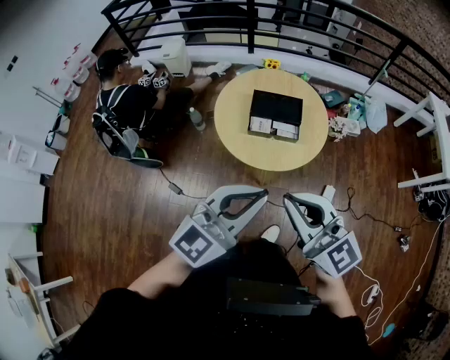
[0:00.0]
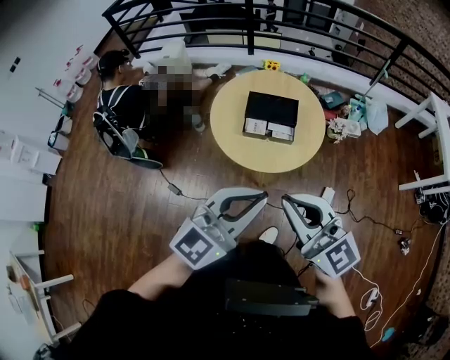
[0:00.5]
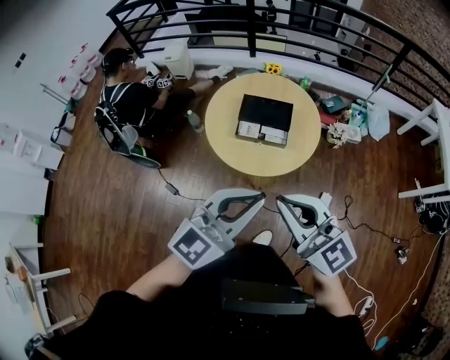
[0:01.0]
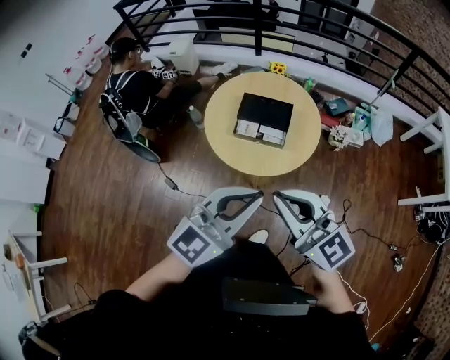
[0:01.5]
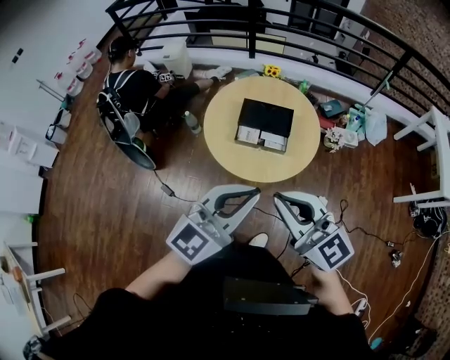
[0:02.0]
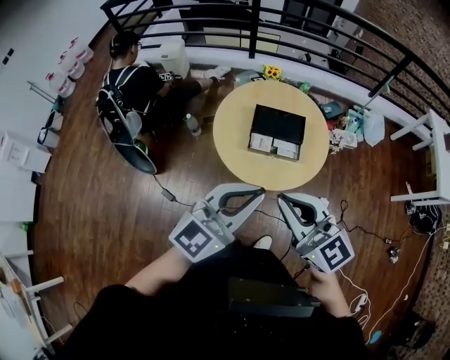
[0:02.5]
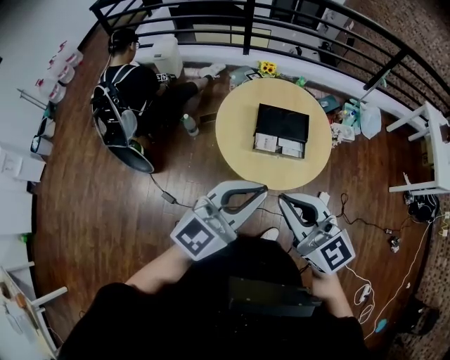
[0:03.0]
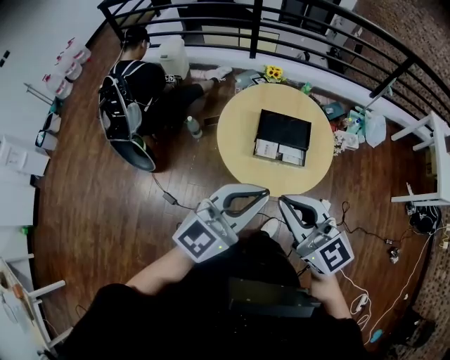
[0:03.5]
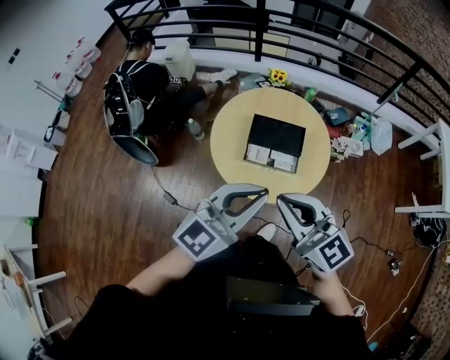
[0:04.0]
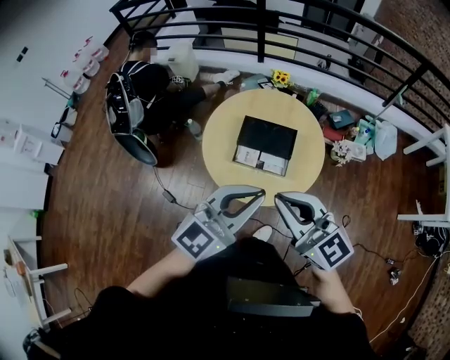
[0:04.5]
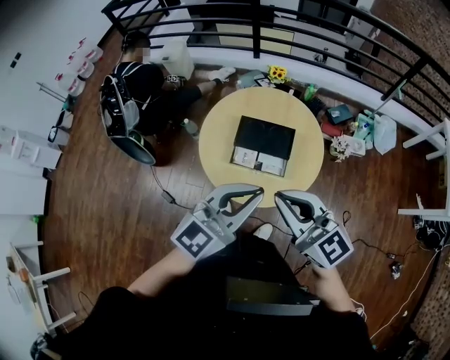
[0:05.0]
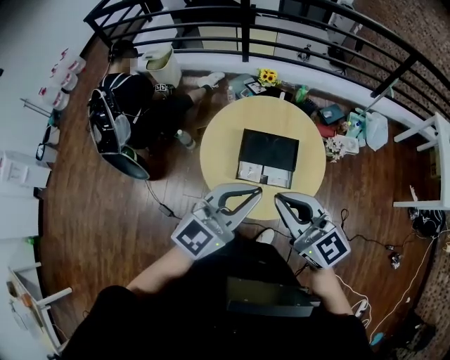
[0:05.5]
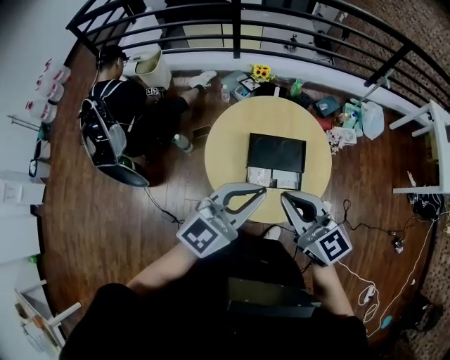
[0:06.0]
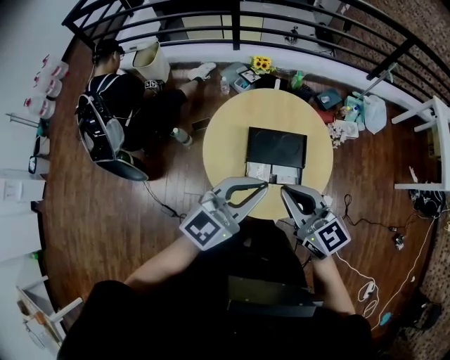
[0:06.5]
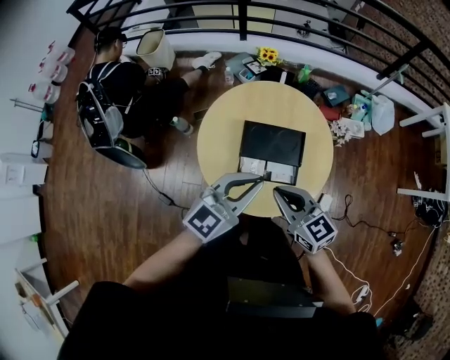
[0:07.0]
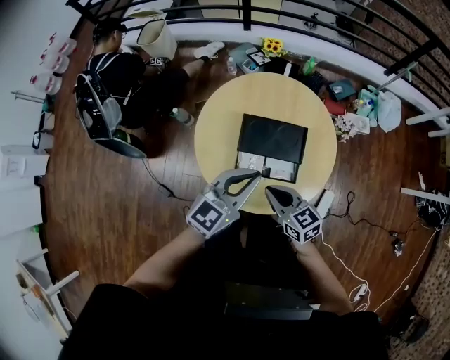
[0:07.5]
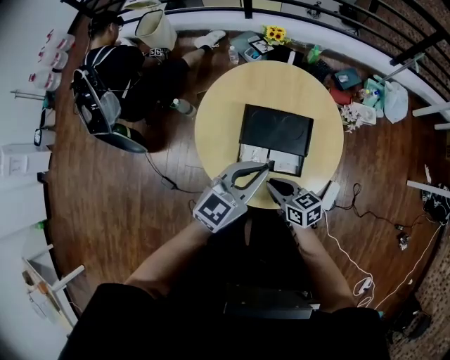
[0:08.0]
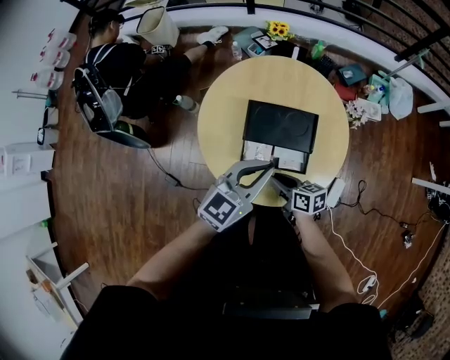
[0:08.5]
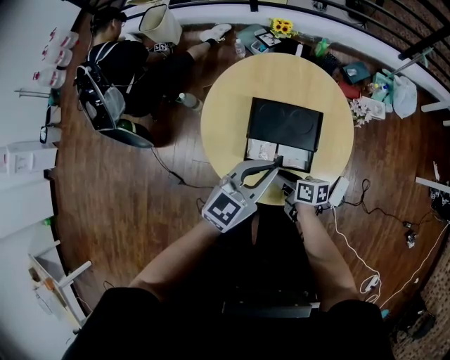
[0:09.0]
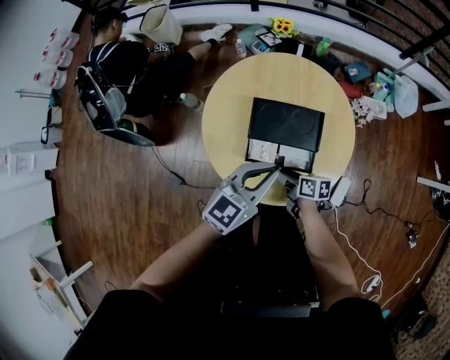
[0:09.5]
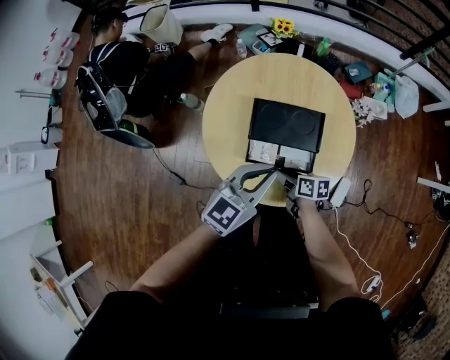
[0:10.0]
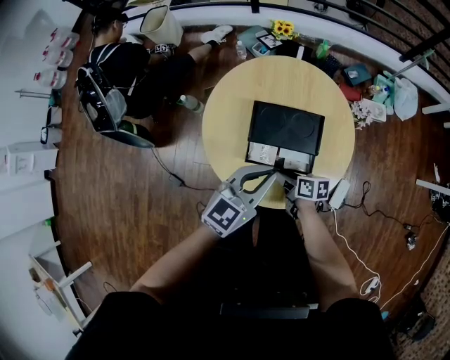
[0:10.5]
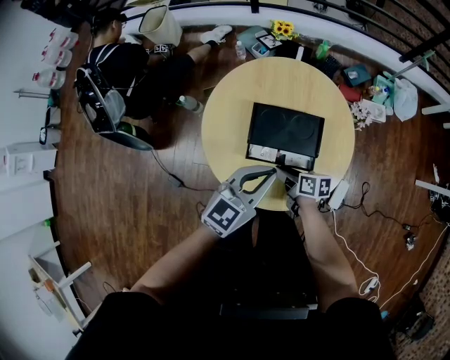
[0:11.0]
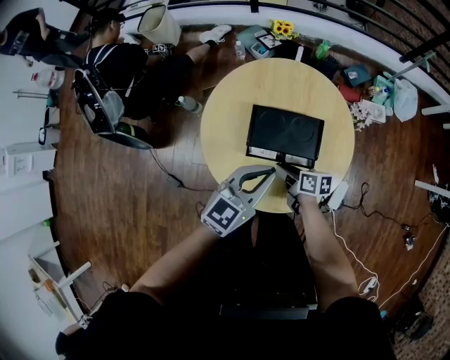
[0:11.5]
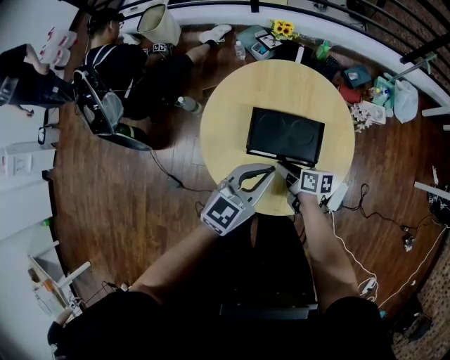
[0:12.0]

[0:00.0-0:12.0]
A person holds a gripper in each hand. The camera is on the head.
0:00.0 to 0:02.0: Both grippers travel together to the right and forward, roughly 10 cm.
0:02.0 to 0:04.0: Both grippers travel together forward, some 15 cm. The right gripper travels to the left and back again, some 20 cm each way. The left gripper reaches about 20 cm to the left, then returns.
0:04.0 to 0:06.0: Both grippers travel together forward, some 20 cm.
0:06.0 to 0:08.0: The right gripper moves downward, about 35 cm, and swivels some 40 degrees; the left gripper travels downward and to the right by roughly 25 cm.
0:08.0 to 0:10.0: The right gripper travels downward by roughly 10 cm, and turns by roughly 30 degrees.
0:10.0 to 0:12.0: Both grippers travel together forward, approximately 5 cm.

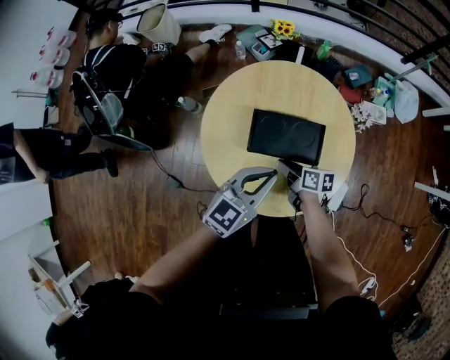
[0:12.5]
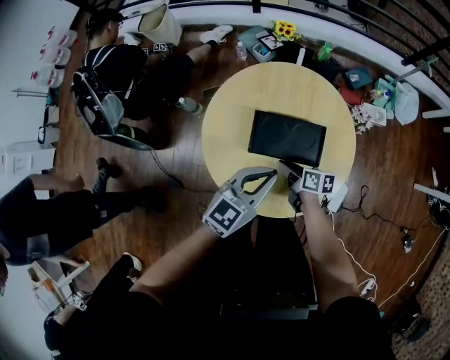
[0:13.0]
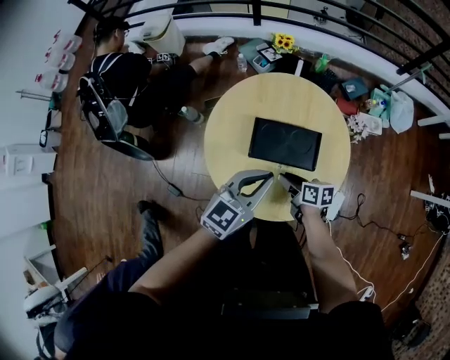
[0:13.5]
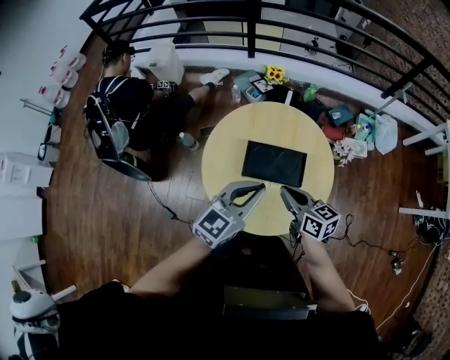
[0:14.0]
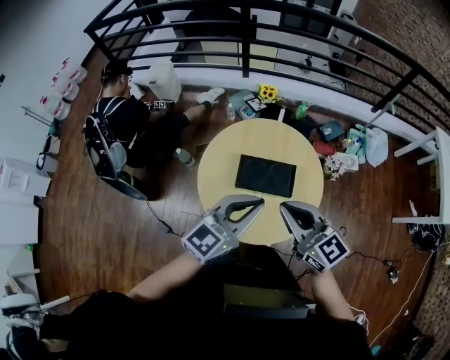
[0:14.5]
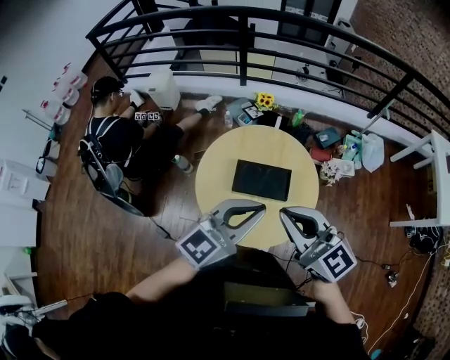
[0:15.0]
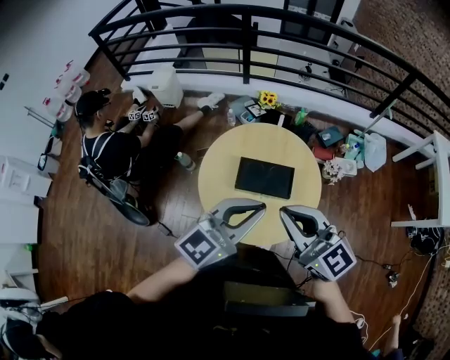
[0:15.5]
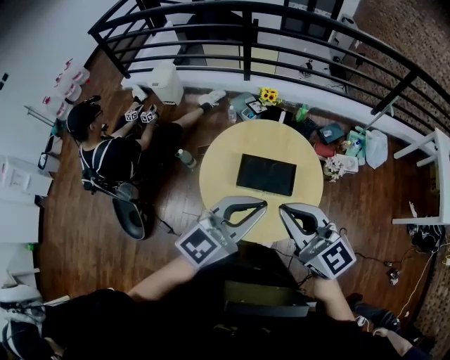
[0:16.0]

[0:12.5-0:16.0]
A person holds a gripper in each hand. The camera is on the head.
0:12.5 to 0:14.5: The left gripper shifts some 25 cm upward. Meanwhile the right gripper heads upward, covering roughly 50 cm, and rotates around the line of its fingers by approximately 60 degrees, counterclockwise from behind.
0:14.5 to 0:16.0: The two grippers go some 5 cm upward.

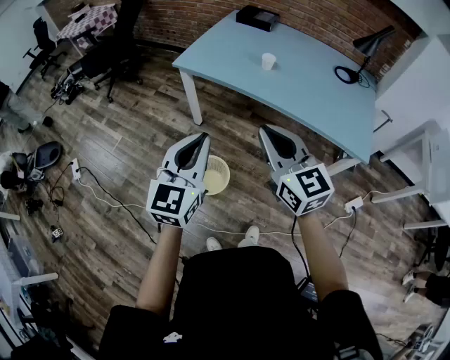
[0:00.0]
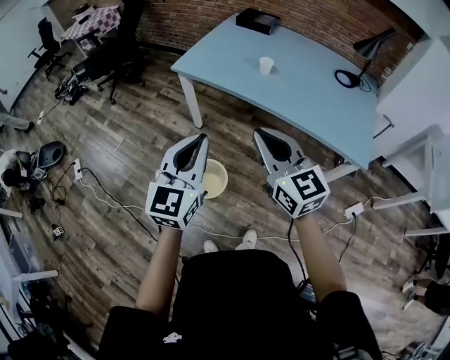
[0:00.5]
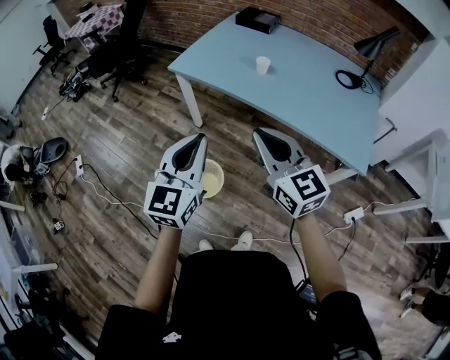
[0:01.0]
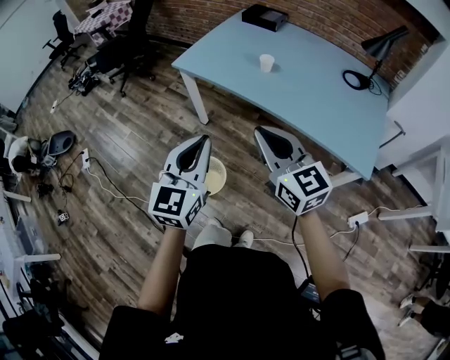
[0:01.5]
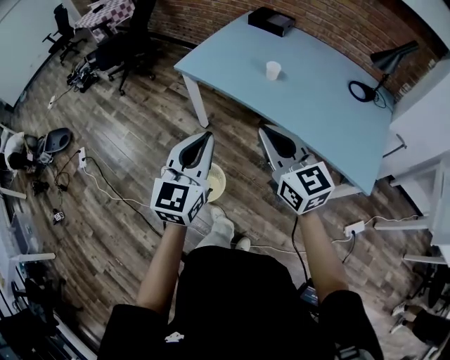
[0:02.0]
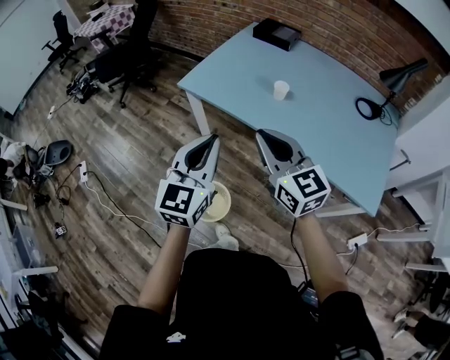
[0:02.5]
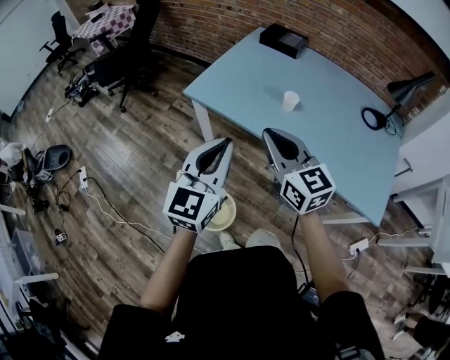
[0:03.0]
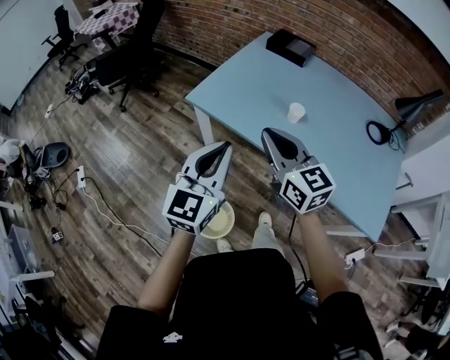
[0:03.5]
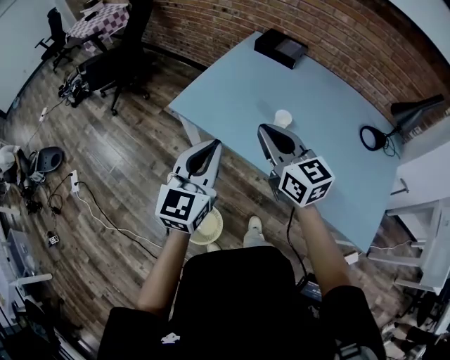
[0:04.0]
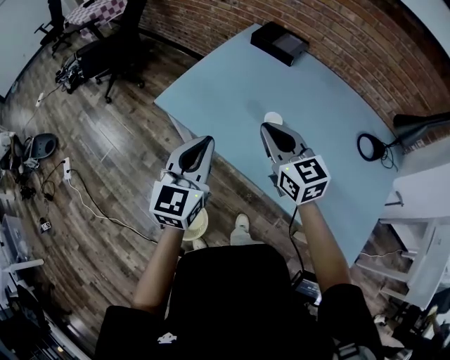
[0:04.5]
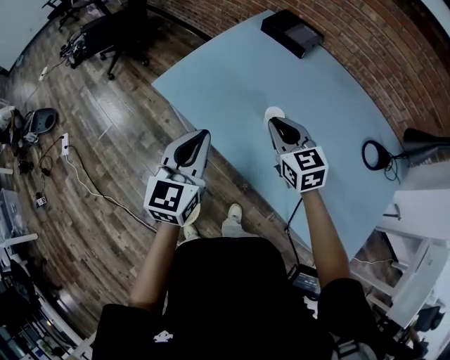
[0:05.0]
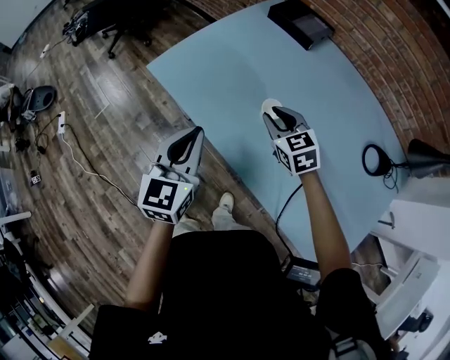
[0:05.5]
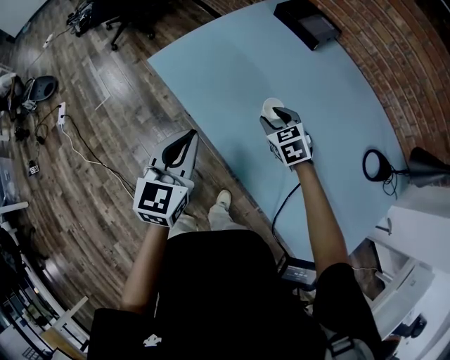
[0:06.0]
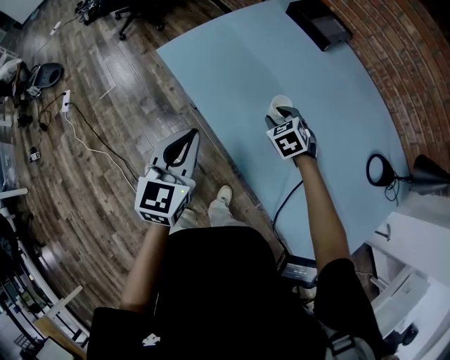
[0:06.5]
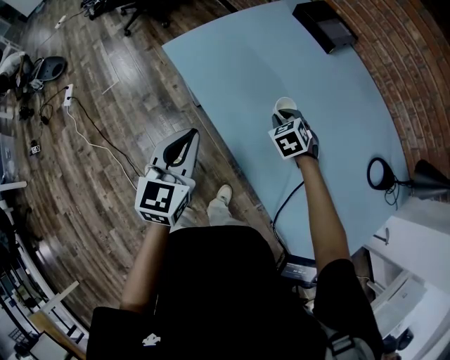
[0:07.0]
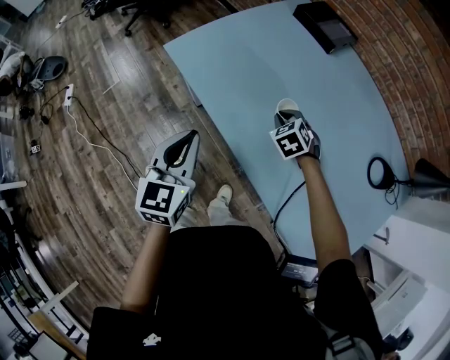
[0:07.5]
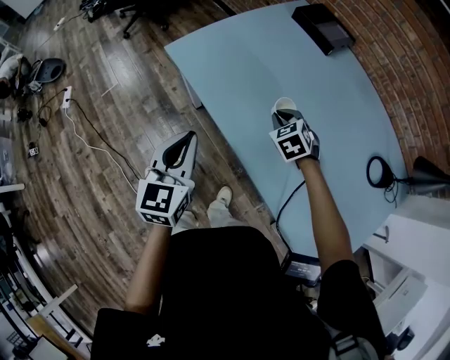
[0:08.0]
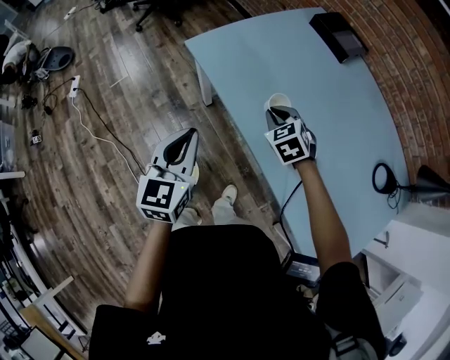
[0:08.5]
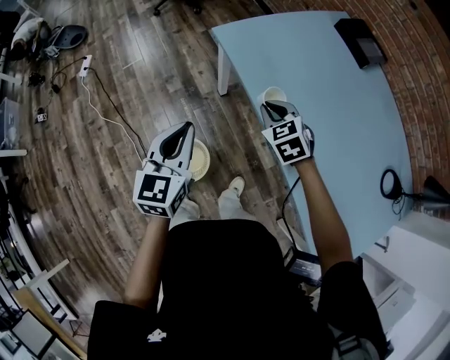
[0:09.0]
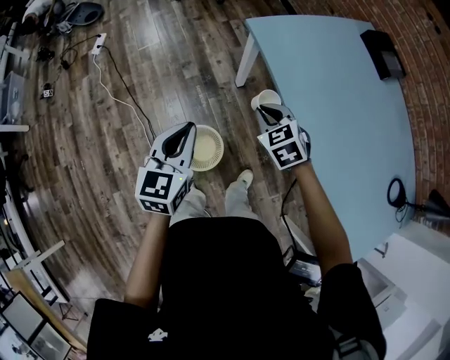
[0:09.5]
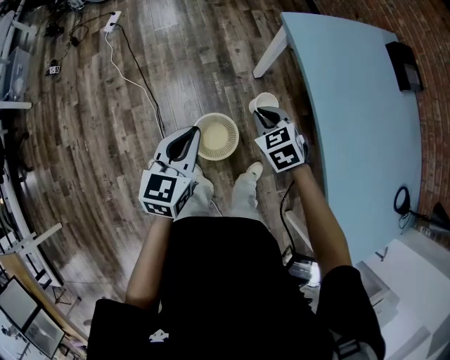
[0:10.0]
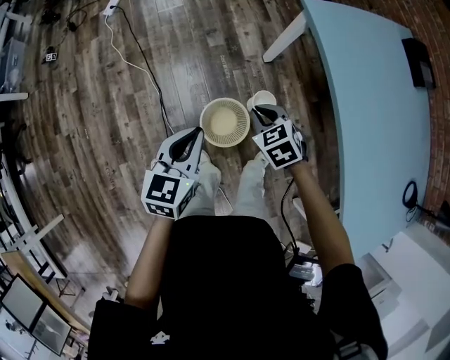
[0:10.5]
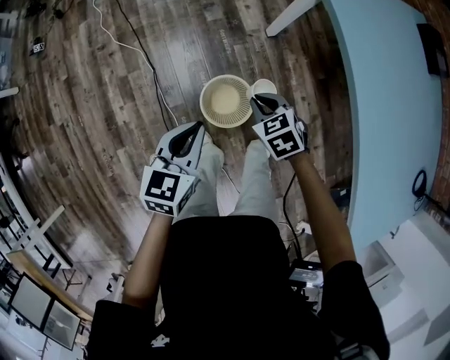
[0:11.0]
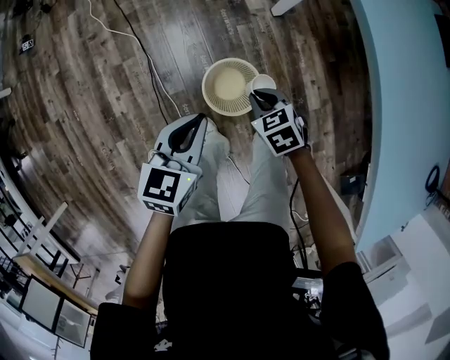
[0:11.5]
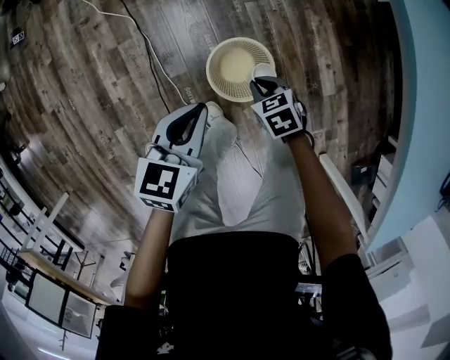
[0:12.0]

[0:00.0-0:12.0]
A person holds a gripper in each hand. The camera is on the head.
0:00.0 to 0:02.0: Both grippers travel together to the right and forward, some 15 cm.
0:02.0 to 0:04.0: The two grippers go some 25 cm forward.
0:04.0 to 0:06.0: The left gripper moves downward, to the right and forward, some 15 cm, and swivels roughly 20 degrees; the right gripper travels downward, to the right and forward by roughly 35 cm, tips its fingers downward by approximately 40 degrees, and opens its fingers.
0:06.0 to 0:08.0: The left gripper moves approximately 5 cm. The right gripper closes its fingers.
0:08.0 to 0:10.0: Both grippers move to the left, approximately 35 cm. The right gripper turns by roughly 30 degrees.
0:10.0 to 0:12.0: The two grippers go some 30 cm downward. The right gripper rotates approximately 20 degrees.
